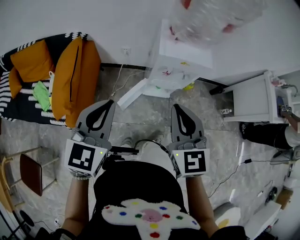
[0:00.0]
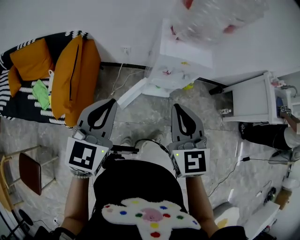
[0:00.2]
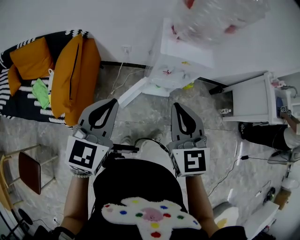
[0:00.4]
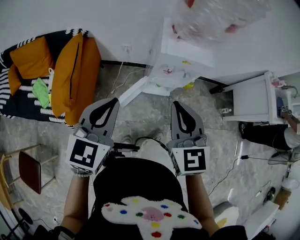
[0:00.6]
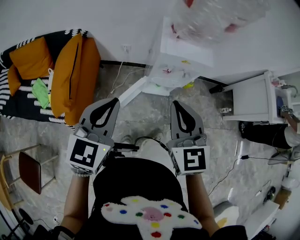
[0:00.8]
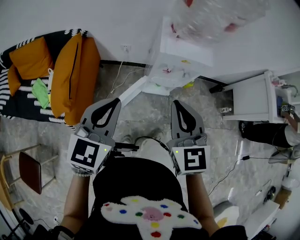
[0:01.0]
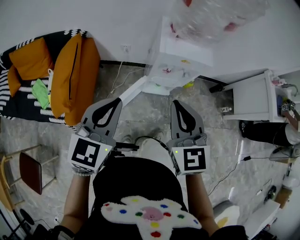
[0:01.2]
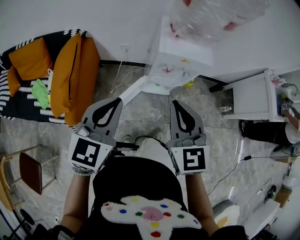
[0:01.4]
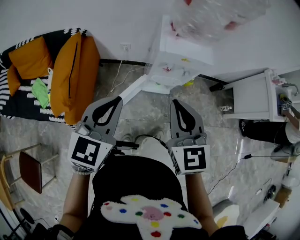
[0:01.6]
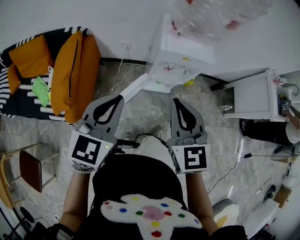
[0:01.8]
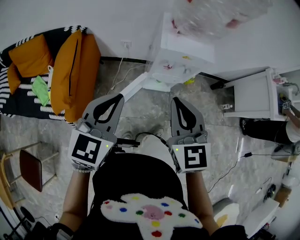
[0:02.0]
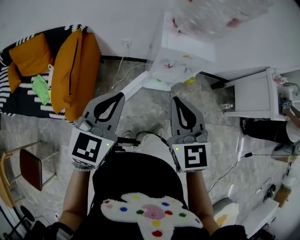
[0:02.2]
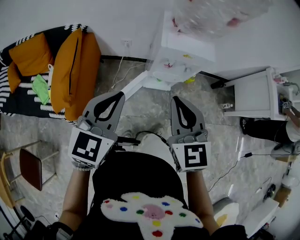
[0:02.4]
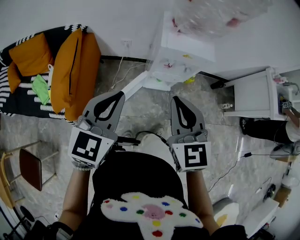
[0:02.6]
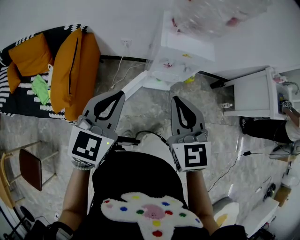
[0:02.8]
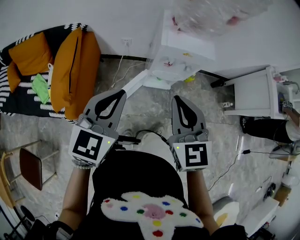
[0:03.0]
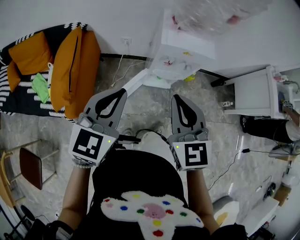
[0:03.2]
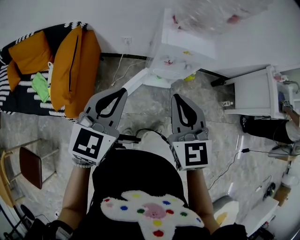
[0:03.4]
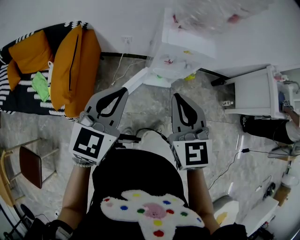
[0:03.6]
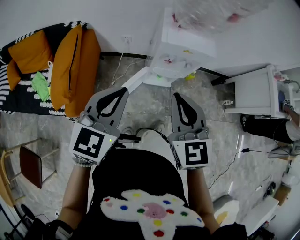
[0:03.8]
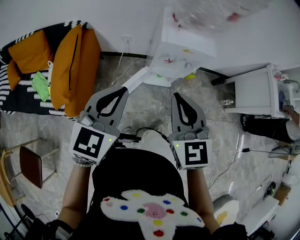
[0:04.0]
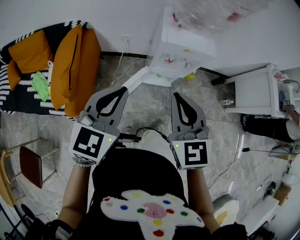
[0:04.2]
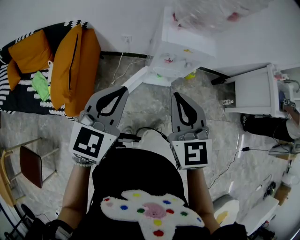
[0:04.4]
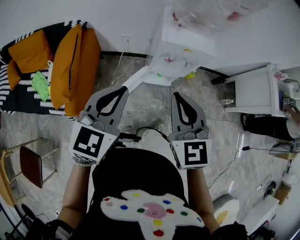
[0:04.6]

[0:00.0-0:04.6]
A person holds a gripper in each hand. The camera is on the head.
0:00.0 to 0:01.6: The grippers make only small movements.
0:01.6 to 0:04.6: Both grippers stay put.

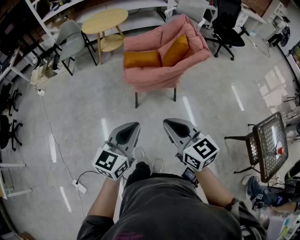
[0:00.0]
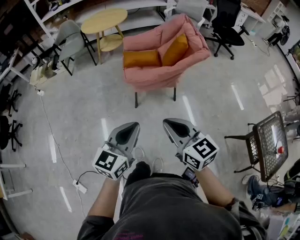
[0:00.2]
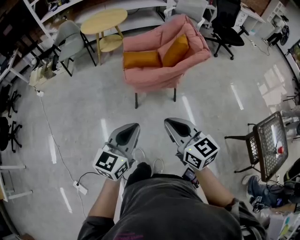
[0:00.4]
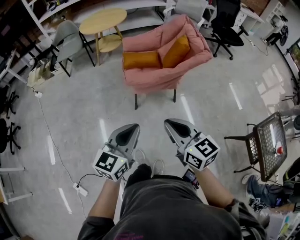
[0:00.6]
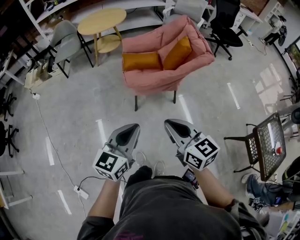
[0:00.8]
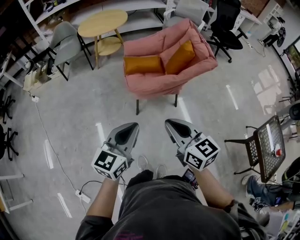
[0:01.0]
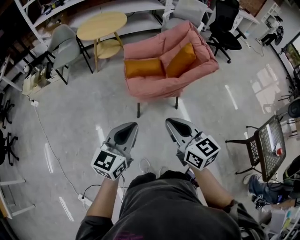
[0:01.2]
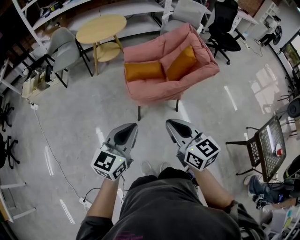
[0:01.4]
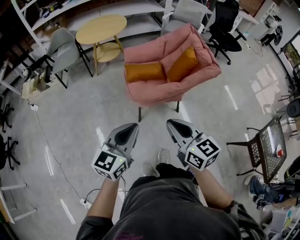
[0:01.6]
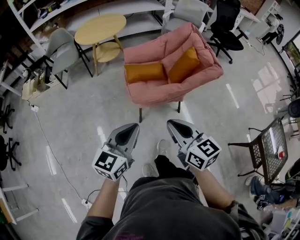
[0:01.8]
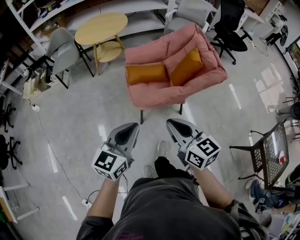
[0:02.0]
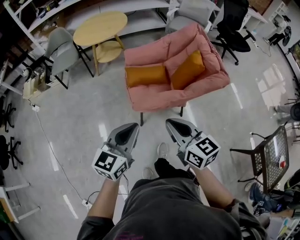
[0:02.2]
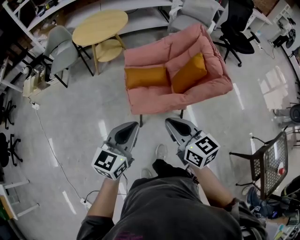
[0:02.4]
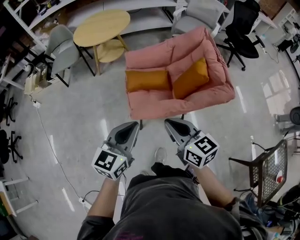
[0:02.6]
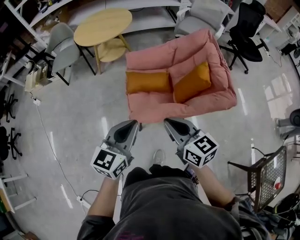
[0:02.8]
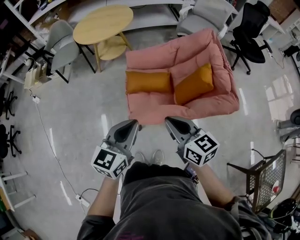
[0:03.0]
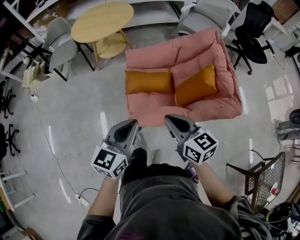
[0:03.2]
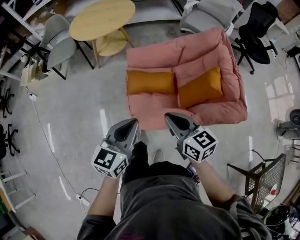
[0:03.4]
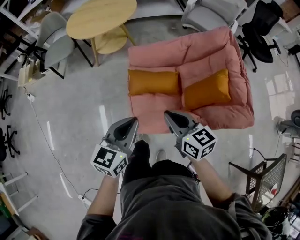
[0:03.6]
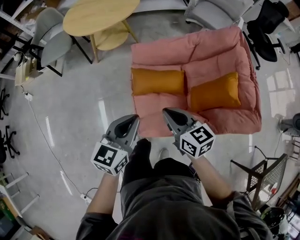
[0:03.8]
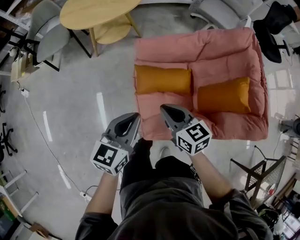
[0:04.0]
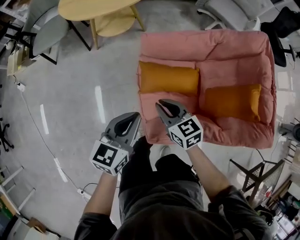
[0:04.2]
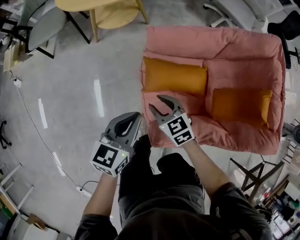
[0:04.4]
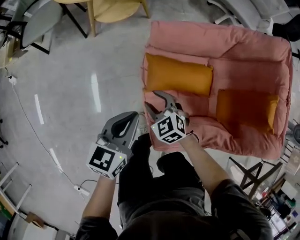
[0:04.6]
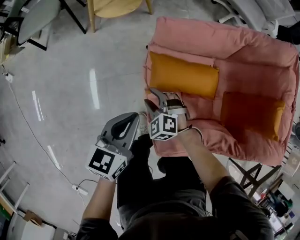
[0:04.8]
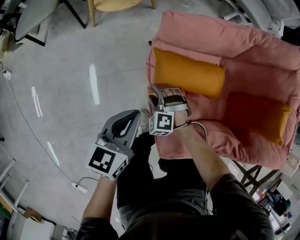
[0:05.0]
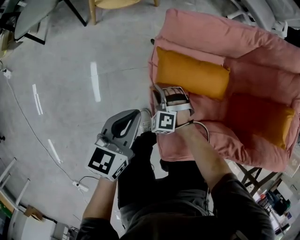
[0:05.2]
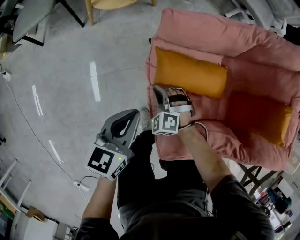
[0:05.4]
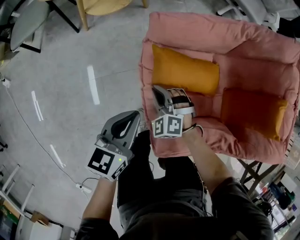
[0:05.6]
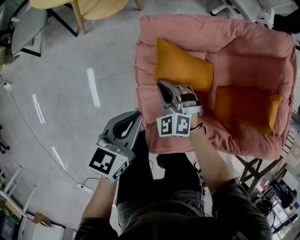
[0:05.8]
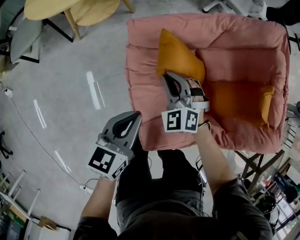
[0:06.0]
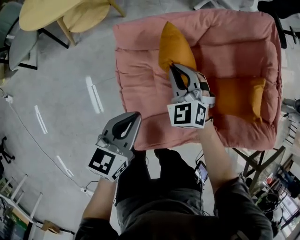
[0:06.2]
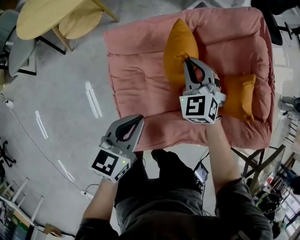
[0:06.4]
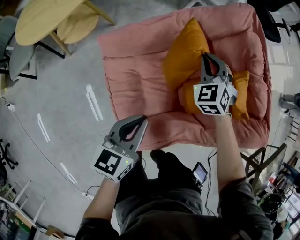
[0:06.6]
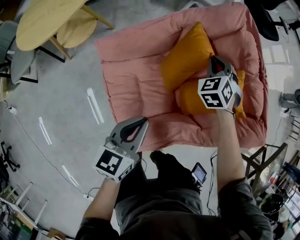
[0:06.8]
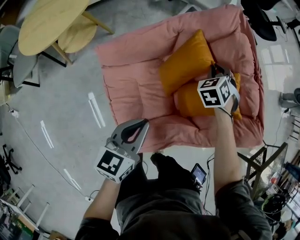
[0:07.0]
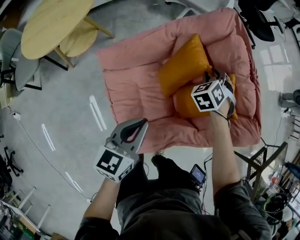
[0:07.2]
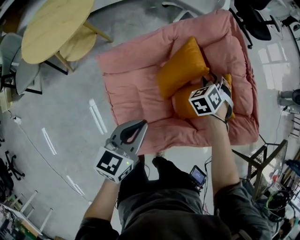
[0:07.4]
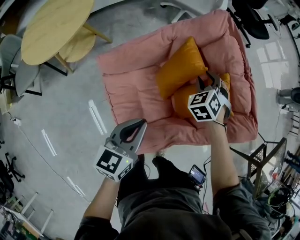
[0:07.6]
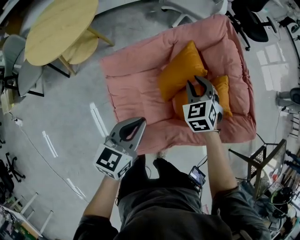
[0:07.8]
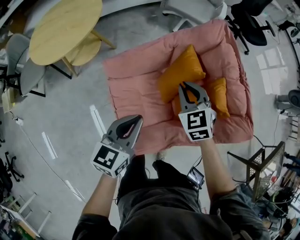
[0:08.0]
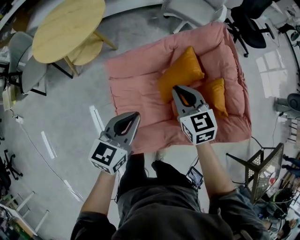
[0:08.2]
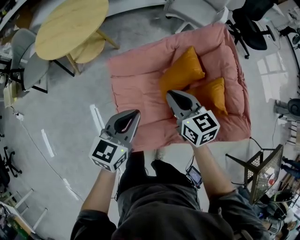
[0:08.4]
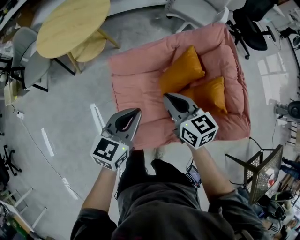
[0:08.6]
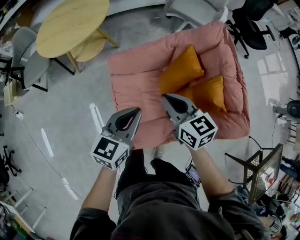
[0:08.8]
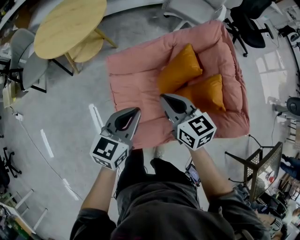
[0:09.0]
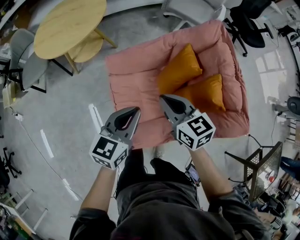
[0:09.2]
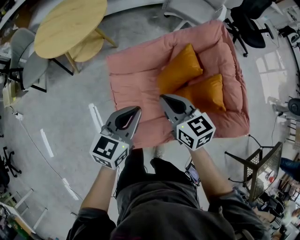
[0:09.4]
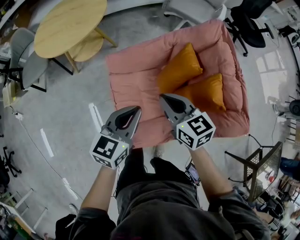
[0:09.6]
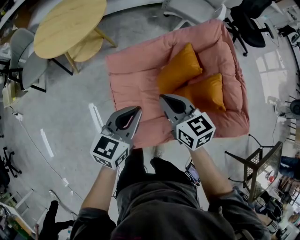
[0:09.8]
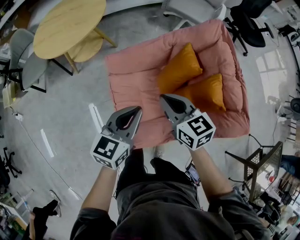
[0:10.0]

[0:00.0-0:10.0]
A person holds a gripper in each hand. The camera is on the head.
0:00.0 to 0:01.4: Both grippers move forward and to the left, some 20 cm.
0:01.4 to 0:02.8: Both grippers travel together forward, about 30 cm.
0:02.8 to 0:04.2: Both grippers move forward, downward and to the left, roughly 40 cm.
0:04.2 to 0:05.8: Both grippers travel together downward and forward, roughly 15 cm. The right gripper rolls counterclockwise, seen from behind, by roughly 50 degrees, and opens, then closes once more.
0:05.8 to 0:07.2: The right gripper moves about 50 cm, and rotates approximately 50 degrees. Meanwhile the left gripper moves approximately 25 cm.
0:07.2 to 0:08.6: The right gripper ends up roughly 30 cm from where it was, turns by approximately 70 degrees, and closes up, while the left gripper moves upward, approximately 10 cm.
0:08.6 to 0:10.0: Neither gripper changes place.

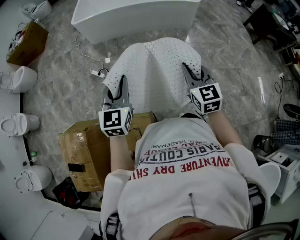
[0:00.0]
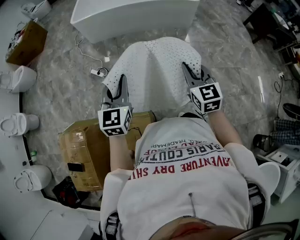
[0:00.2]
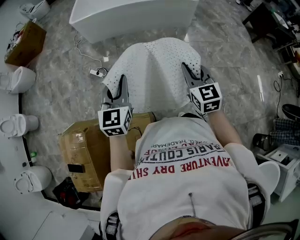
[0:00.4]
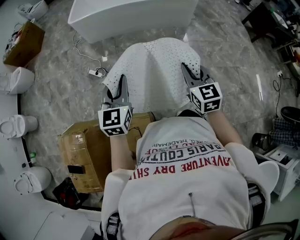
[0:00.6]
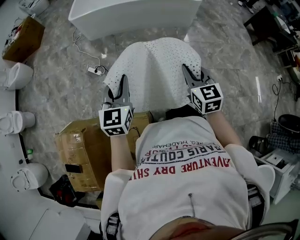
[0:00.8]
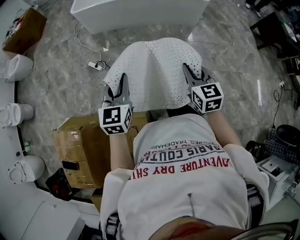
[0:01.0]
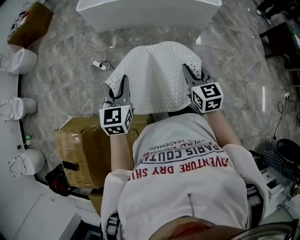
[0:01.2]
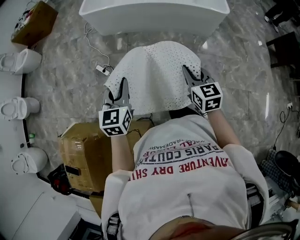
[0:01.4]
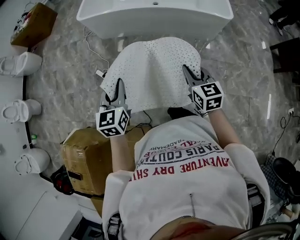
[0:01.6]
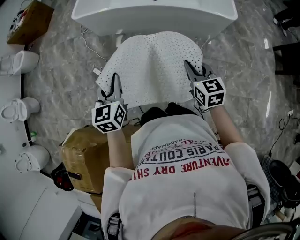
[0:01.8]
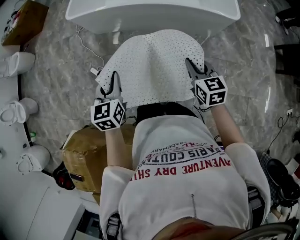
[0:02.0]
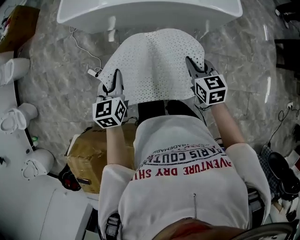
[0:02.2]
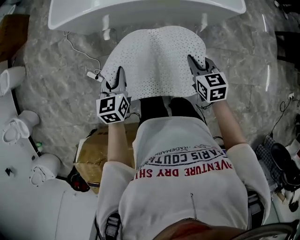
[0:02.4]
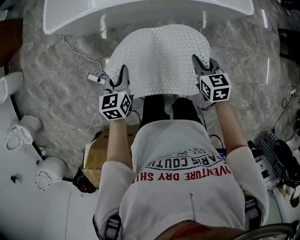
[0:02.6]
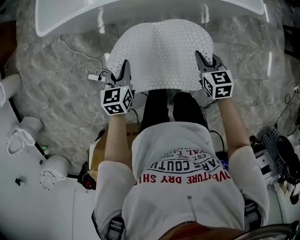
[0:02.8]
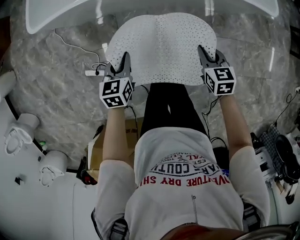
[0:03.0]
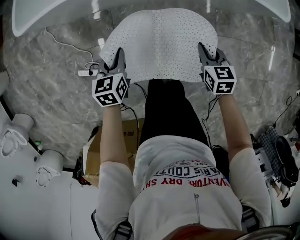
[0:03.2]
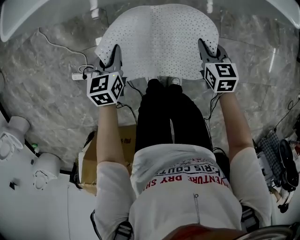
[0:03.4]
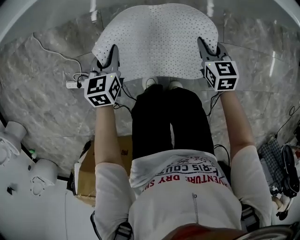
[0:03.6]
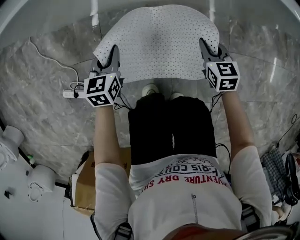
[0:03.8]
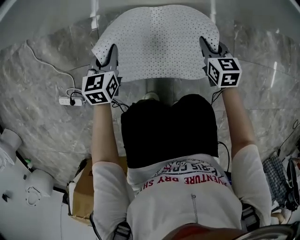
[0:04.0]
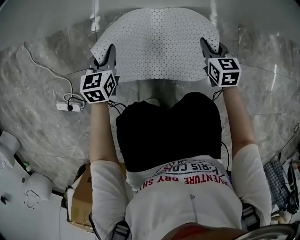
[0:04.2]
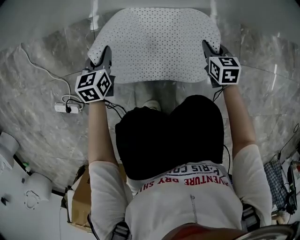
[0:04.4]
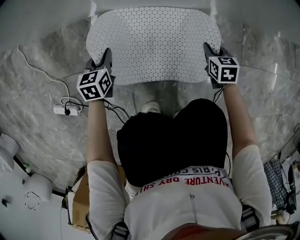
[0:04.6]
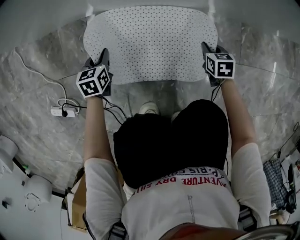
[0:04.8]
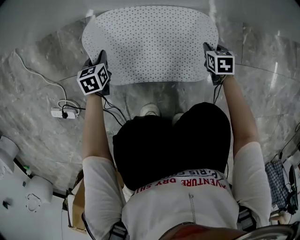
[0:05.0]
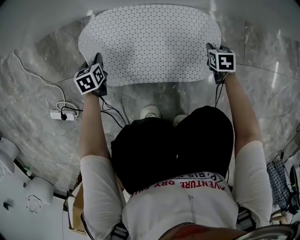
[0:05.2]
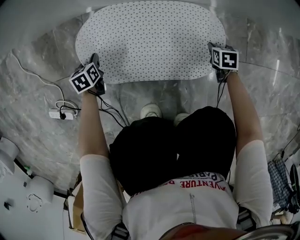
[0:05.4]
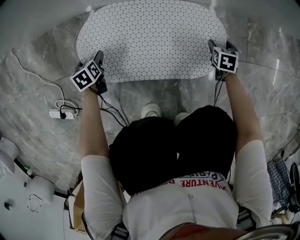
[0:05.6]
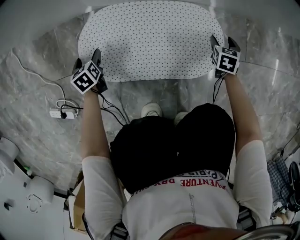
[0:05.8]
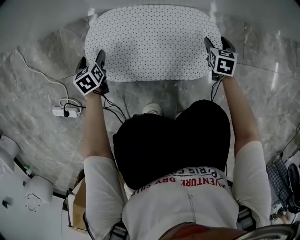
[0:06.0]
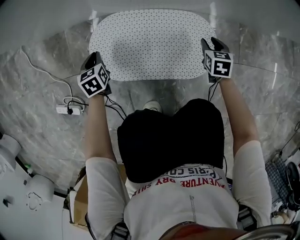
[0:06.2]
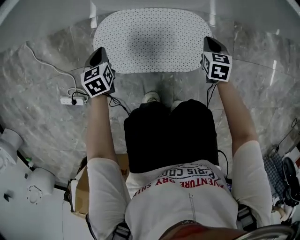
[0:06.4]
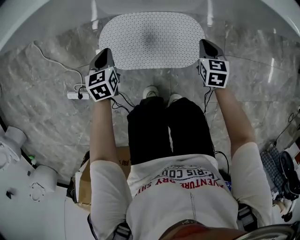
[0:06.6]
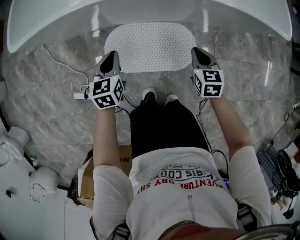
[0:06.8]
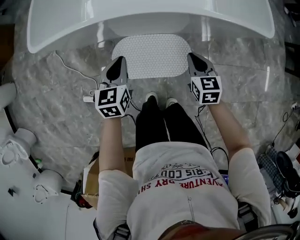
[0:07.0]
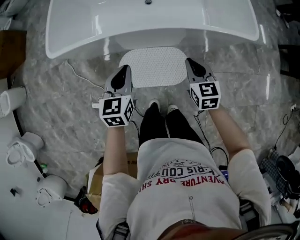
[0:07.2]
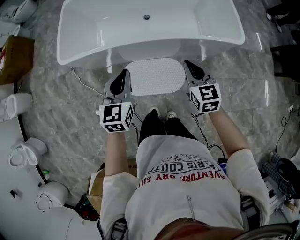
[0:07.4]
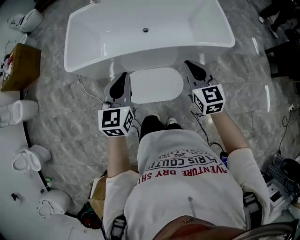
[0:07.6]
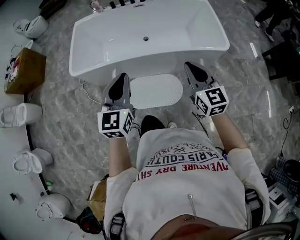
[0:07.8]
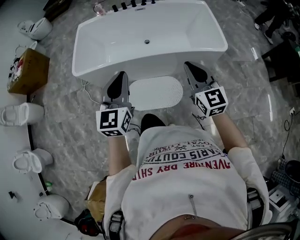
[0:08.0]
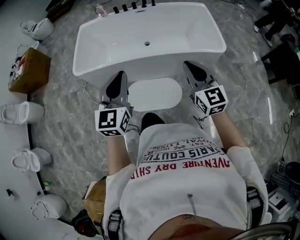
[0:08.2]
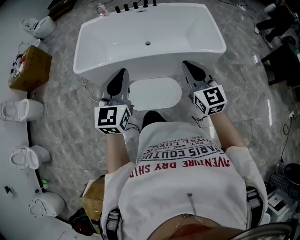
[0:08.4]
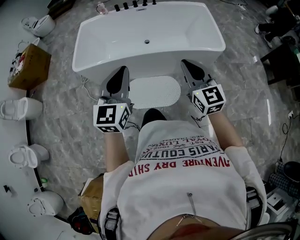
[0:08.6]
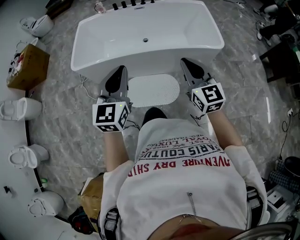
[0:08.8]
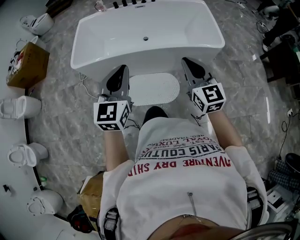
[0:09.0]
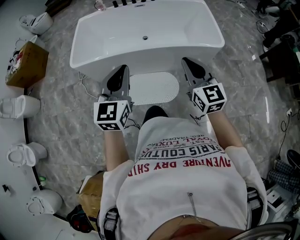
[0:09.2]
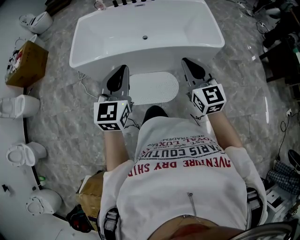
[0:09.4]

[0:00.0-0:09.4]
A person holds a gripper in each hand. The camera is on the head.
0:00.0 to 0:01.6: Both grippers travel together forward, about 30 cm. The left gripper swivels roughly 20 degrees.
0:01.6 to 0:03.2: The left gripper heads forward and downward, covering roughly 60 cm, and changes its angle by some 30 degrees, while the right gripper goes some 50 cm downward and forward, and turns by about 30 degrees.
0:03.2 to 0:04.8: The two grippers go roughly 40 cm downward.
0:04.8 to 0:06.2: The right gripper opens its fingers. Meanwhile the left gripper shifts roughly 5 cm to the left, reaches some 10 cm downward, then returns, and opens, then closes again.
0:06.2 to 0:07.8: Both grippers move upward, roughly 90 cm. The right gripper angles its fingers upward, by roughly 50 degrees, and closes, while the left gripper angles its fingers upward, by about 40 degrees.
0:07.8 to 0:09.4: The grippers both shift backward by some 10 cm.
